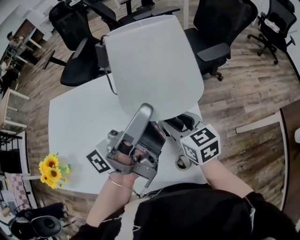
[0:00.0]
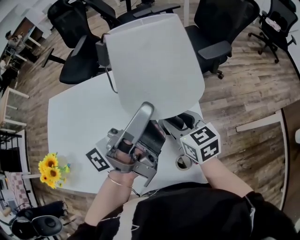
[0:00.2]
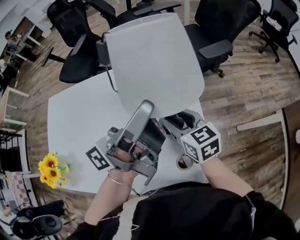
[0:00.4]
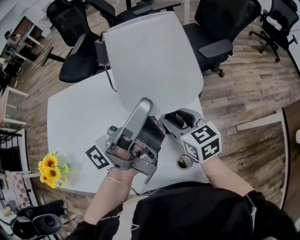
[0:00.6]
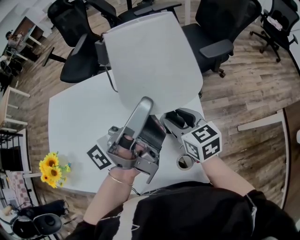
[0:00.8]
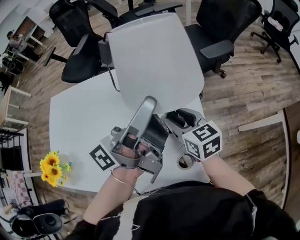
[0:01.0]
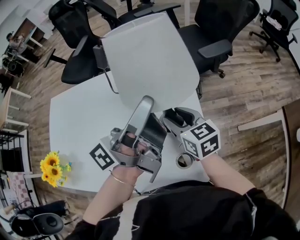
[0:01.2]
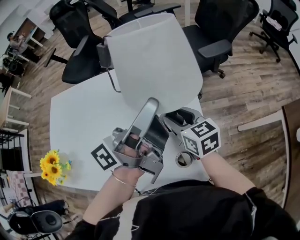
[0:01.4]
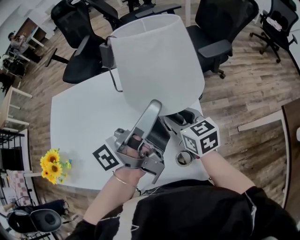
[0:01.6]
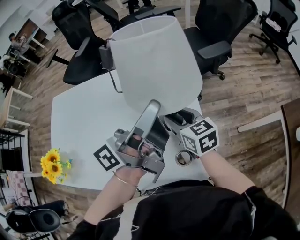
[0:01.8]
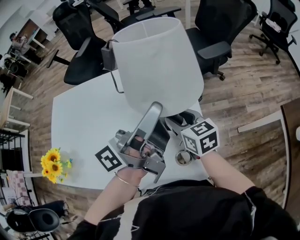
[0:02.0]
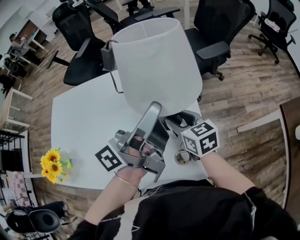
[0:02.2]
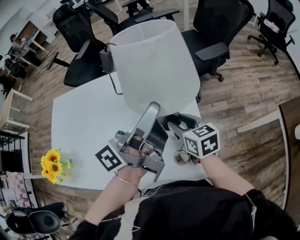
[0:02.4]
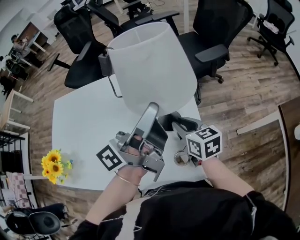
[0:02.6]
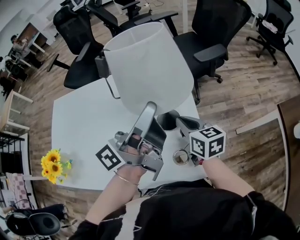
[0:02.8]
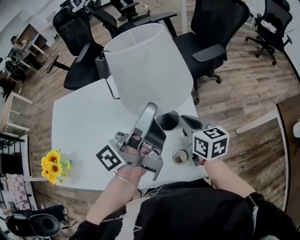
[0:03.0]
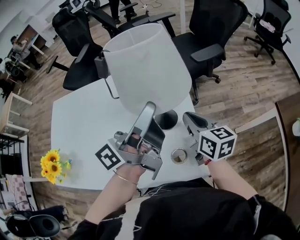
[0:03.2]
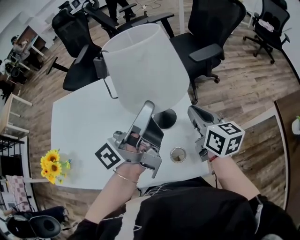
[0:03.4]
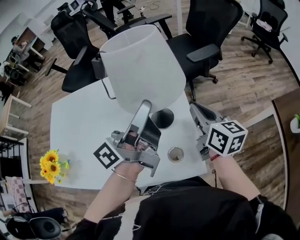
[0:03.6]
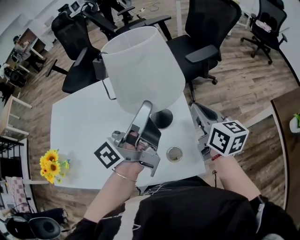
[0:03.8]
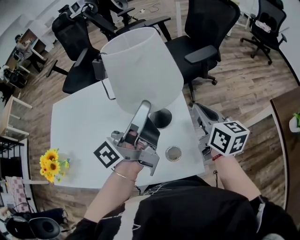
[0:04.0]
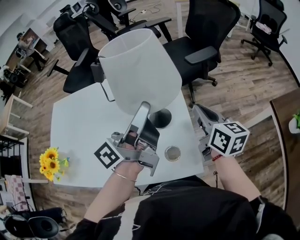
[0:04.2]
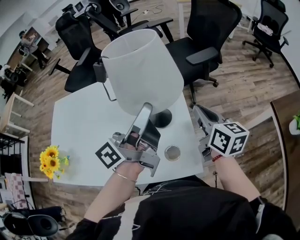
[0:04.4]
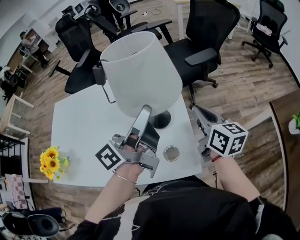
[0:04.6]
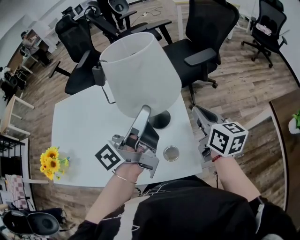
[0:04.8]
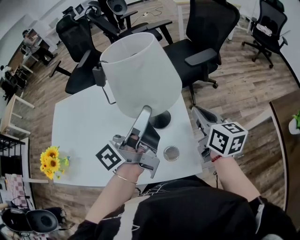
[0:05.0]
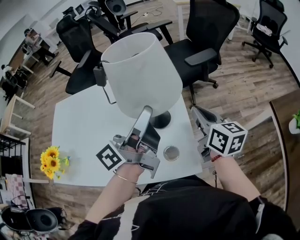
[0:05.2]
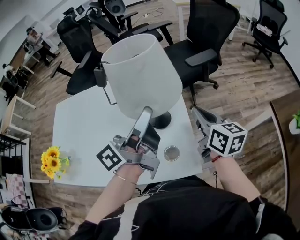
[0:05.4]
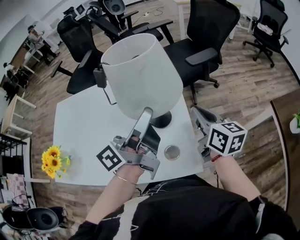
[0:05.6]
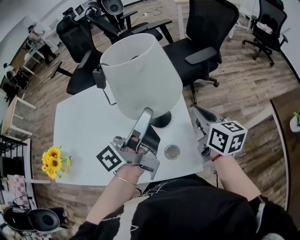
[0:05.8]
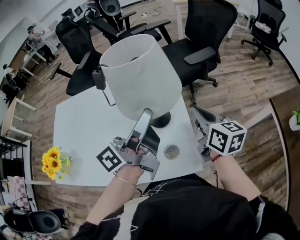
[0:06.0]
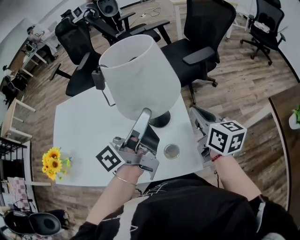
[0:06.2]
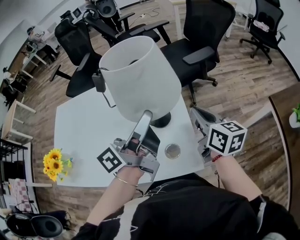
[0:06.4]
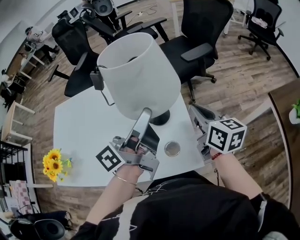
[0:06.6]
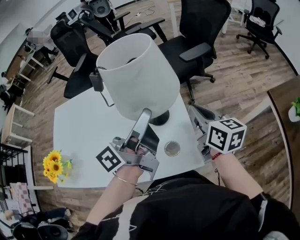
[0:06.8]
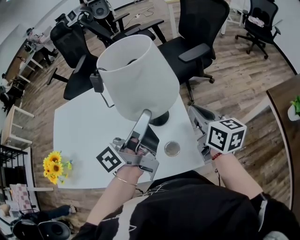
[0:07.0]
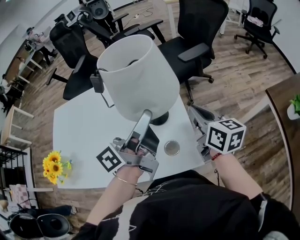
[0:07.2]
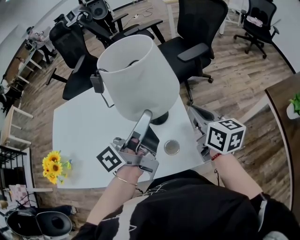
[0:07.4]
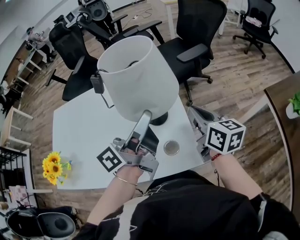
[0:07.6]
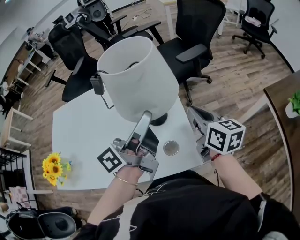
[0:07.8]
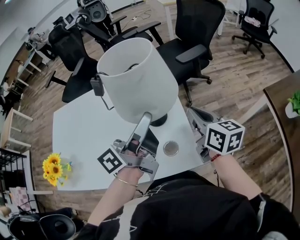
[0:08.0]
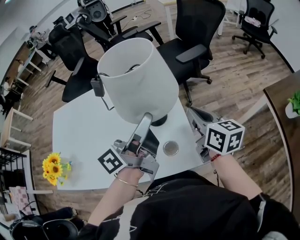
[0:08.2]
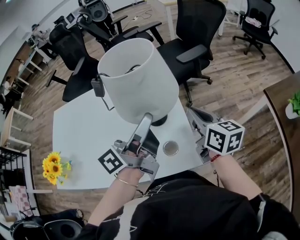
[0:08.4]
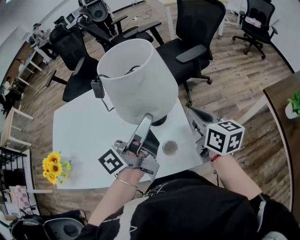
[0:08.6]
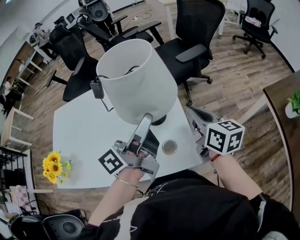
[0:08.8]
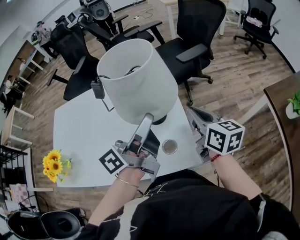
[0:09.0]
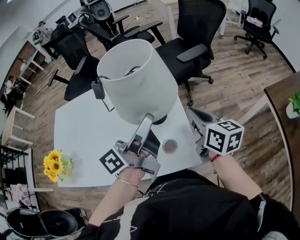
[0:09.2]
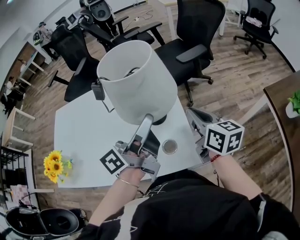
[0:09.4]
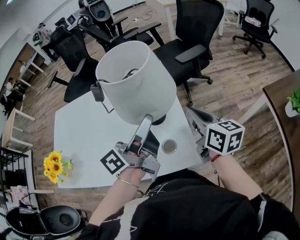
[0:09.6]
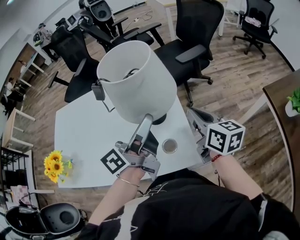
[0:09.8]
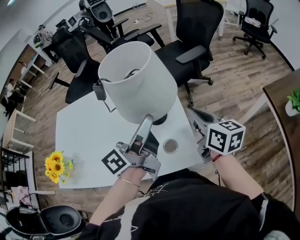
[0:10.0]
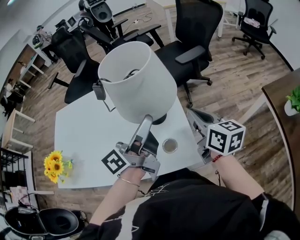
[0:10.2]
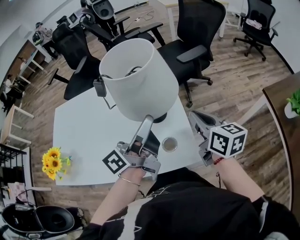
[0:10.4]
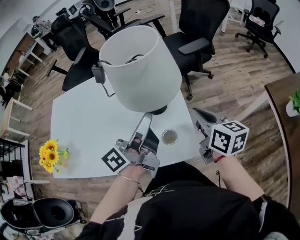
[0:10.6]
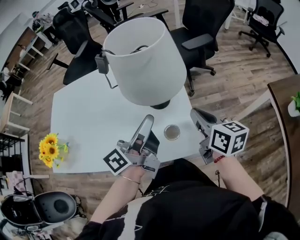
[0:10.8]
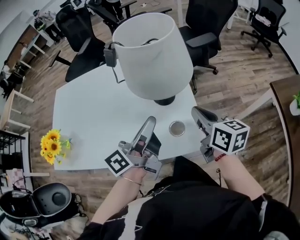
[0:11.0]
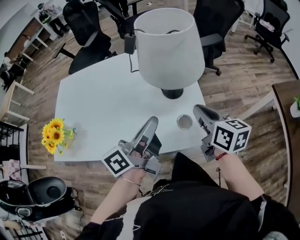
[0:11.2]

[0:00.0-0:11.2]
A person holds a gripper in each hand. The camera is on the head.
0:00.0 to 0:01.6: The grippers move only a little.
0:01.6 to 0:03.2: The right gripper moves to the right, roughly 10 cm, and closes its fingers.
0:03.2 to 0:04.8: The right gripper is displaced to the right by roughly 5 cm.
0:04.8 to 0:09.6: The grippers make only small movements.
0:09.6 to 0:11.2: Both grippers move backward and to the left, approximately 10 cm. The left gripper closes its fingers.

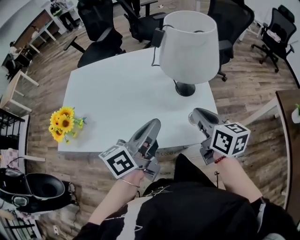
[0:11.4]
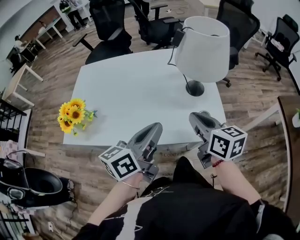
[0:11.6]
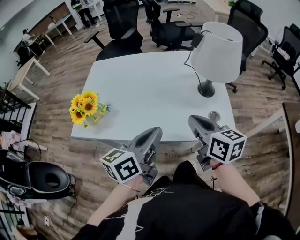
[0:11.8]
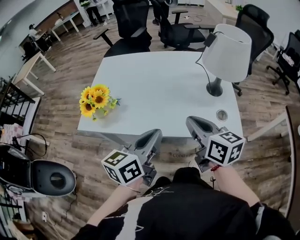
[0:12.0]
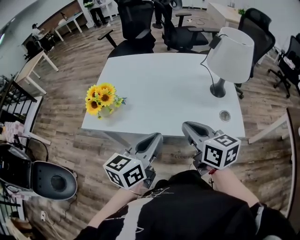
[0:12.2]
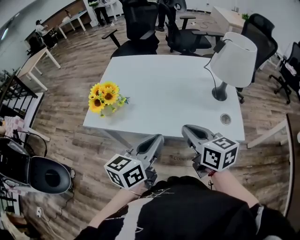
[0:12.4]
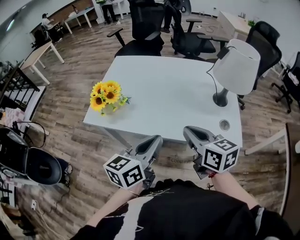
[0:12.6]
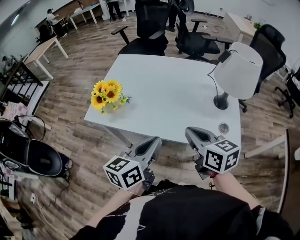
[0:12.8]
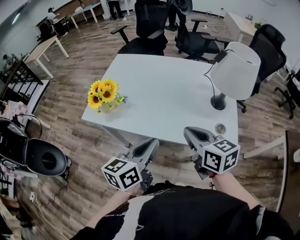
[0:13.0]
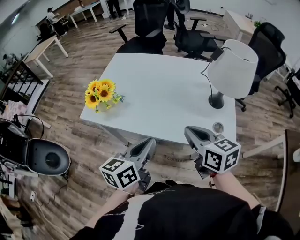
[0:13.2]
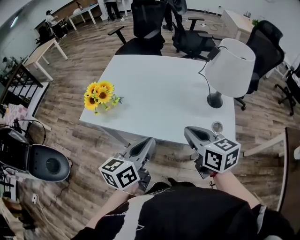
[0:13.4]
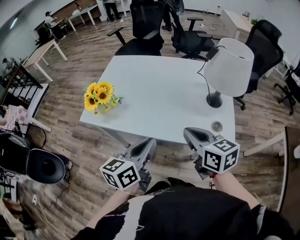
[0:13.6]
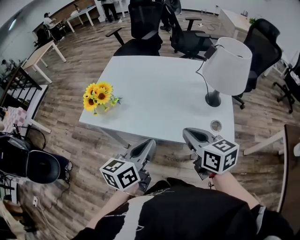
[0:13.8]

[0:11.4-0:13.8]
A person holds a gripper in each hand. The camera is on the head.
0:11.4 to 0:12.6: Both grippers move to the left and backward, approximately 20 cm. The left gripper turns by about 20 degrees. The right gripper changes its angle by roughly 20 degrees.
0:12.6 to 0:13.8: The right gripper travels to the right by roughly 5 cm.

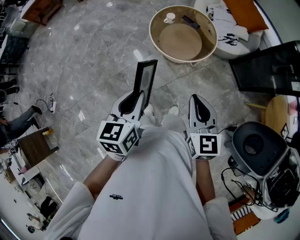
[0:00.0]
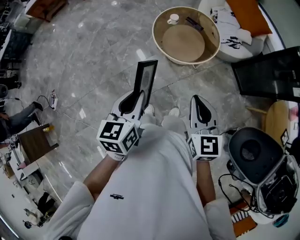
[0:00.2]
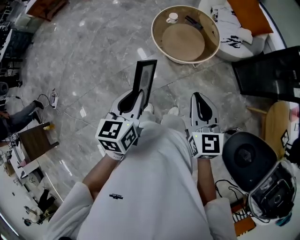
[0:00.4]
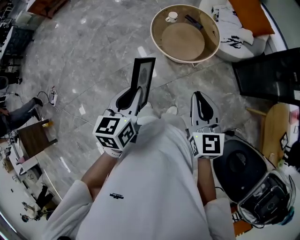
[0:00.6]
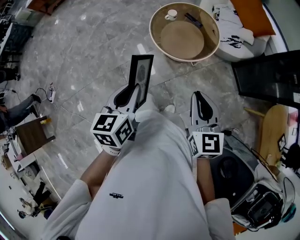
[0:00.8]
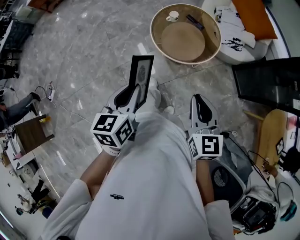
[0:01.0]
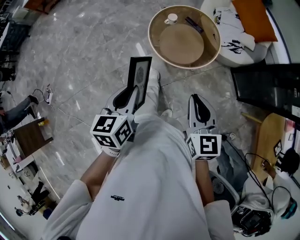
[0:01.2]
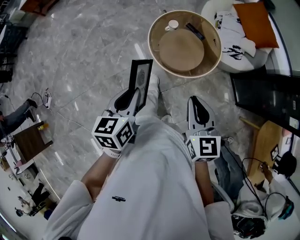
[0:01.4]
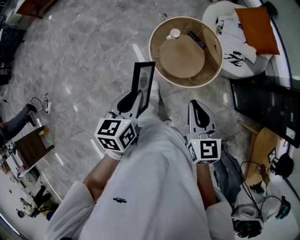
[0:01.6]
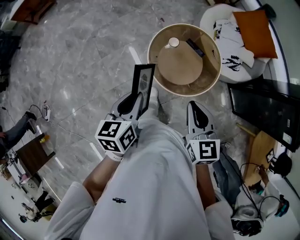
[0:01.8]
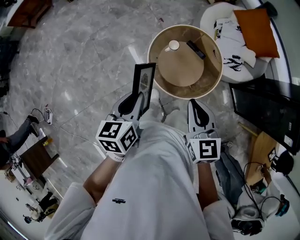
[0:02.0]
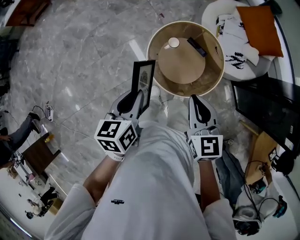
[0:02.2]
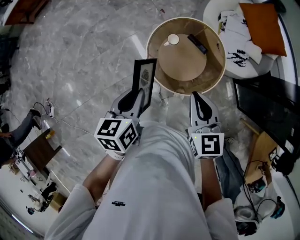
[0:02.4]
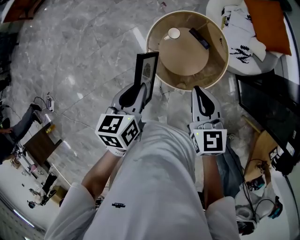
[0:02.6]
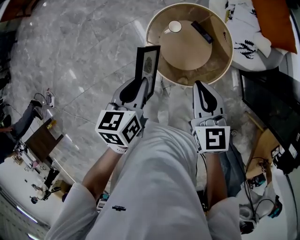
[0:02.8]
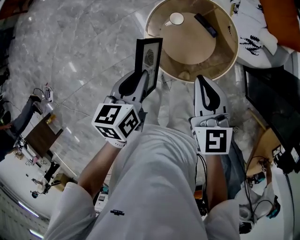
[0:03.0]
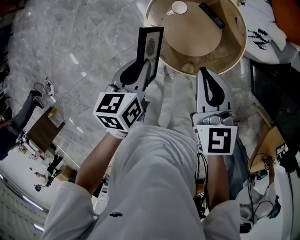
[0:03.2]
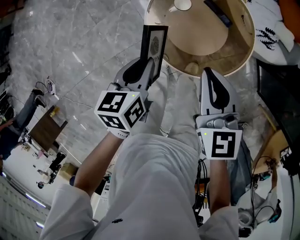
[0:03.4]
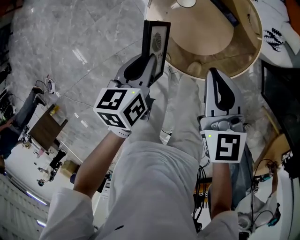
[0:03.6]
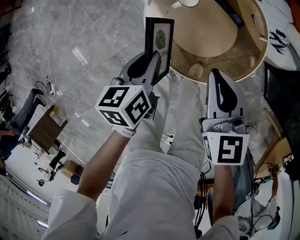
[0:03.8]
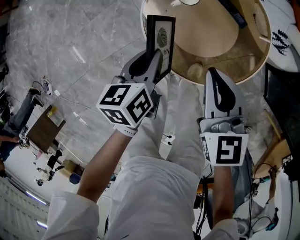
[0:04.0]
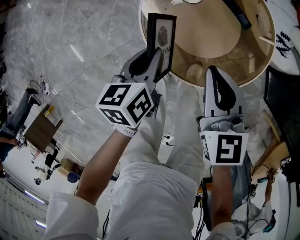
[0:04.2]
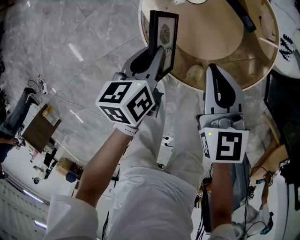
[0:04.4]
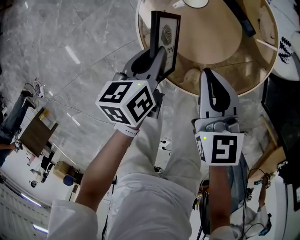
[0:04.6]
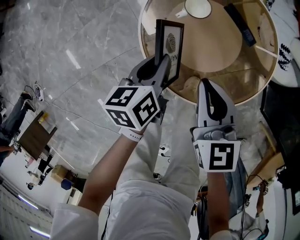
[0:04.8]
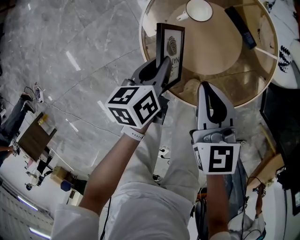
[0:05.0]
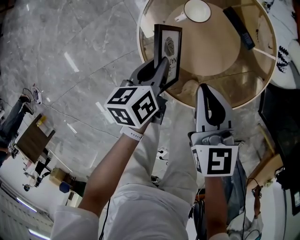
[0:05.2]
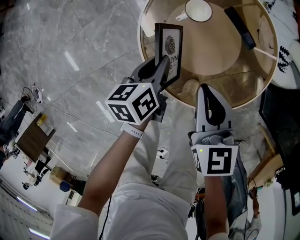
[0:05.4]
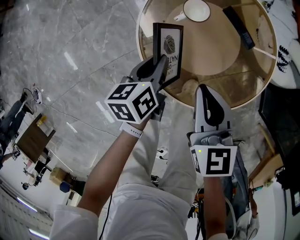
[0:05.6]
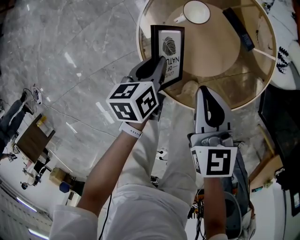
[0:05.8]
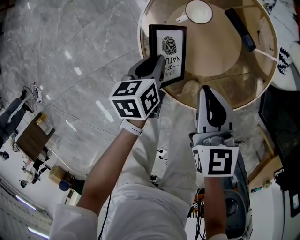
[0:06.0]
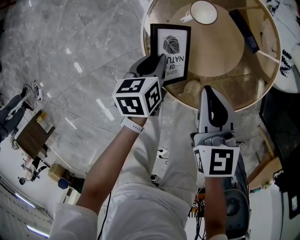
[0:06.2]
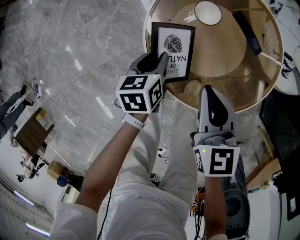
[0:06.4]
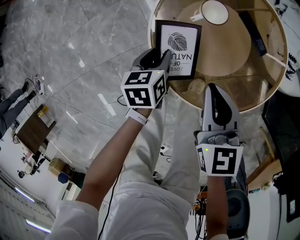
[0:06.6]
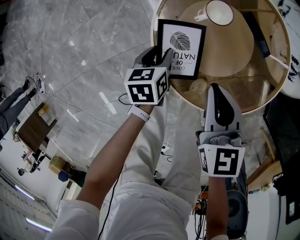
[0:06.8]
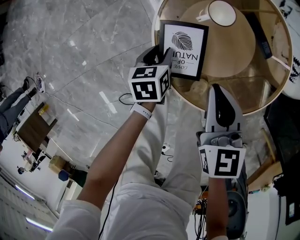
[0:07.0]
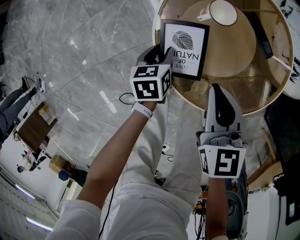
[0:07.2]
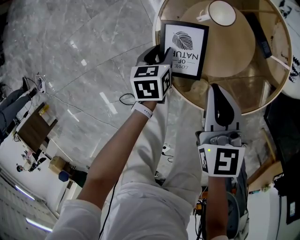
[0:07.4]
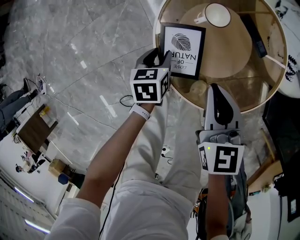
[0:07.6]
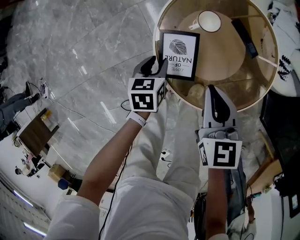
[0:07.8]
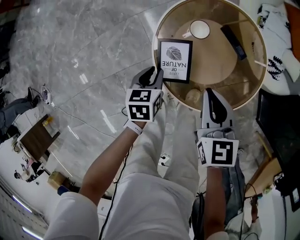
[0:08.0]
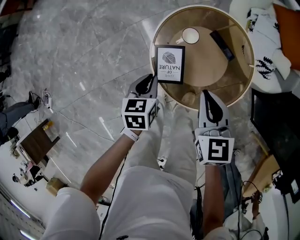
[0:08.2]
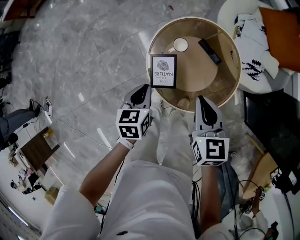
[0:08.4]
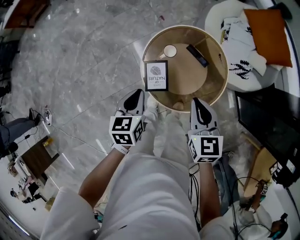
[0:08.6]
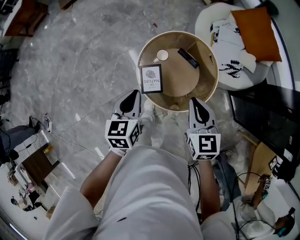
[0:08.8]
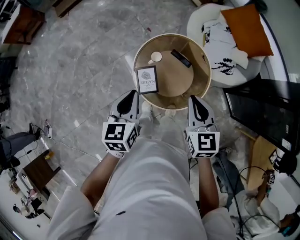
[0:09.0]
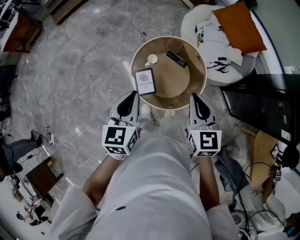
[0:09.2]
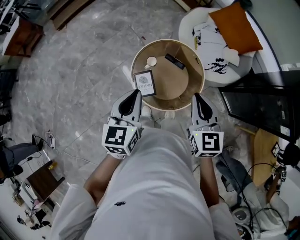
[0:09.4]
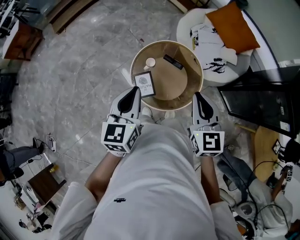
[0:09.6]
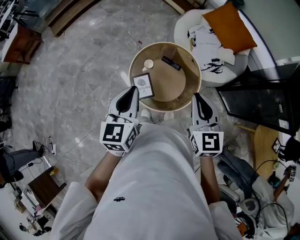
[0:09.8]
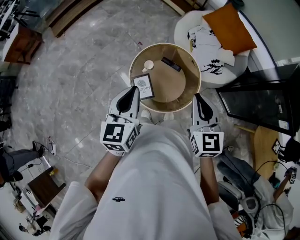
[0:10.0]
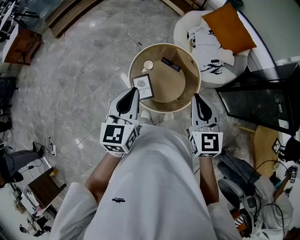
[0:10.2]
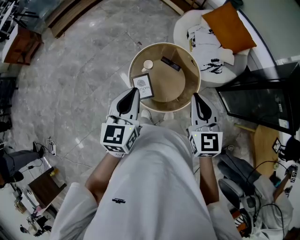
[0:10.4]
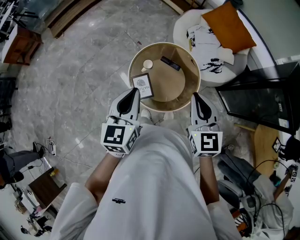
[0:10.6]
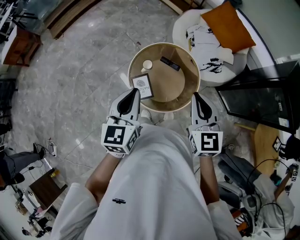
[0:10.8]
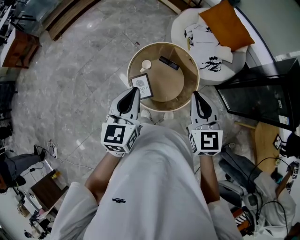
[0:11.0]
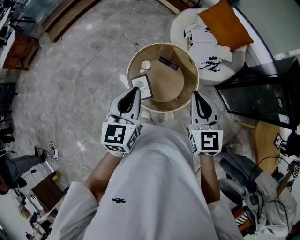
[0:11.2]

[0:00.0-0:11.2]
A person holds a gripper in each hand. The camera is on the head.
0:00.0 to 0:01.6: The grippers both shift forward by approximately 25 cm.
0:01.6 to 0:03.2: Both grippers travel together forward and downward, approximately 25 cm.
0:03.2 to 0:04.8: The two grippers go approximately 25 cm downward.
0:04.8 to 0:06.4: The left gripper shifts approximately 10 cm downward.
0:06.4 to 0:08.0: Both grippers travel together upward, approximately 10 cm.
0:08.0 to 0:09.6: Both grippers move upward, approximately 40 cm. The right gripper rotates approximately 30 degrees; the left gripper tips its fingers upward by approximately 40 degrees, and closes.
0:09.6 to 0:11.2: The grippers stay close to where they were, moving slightly.
